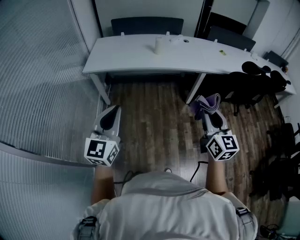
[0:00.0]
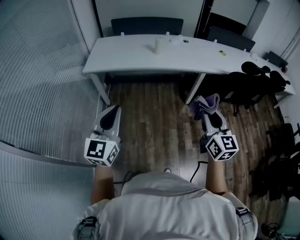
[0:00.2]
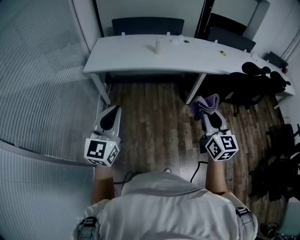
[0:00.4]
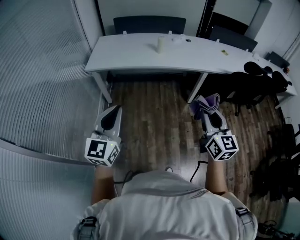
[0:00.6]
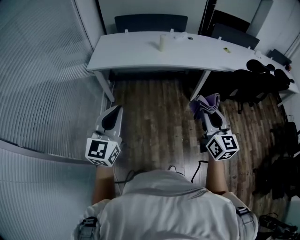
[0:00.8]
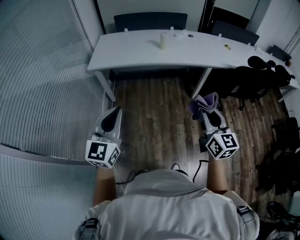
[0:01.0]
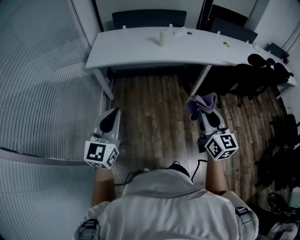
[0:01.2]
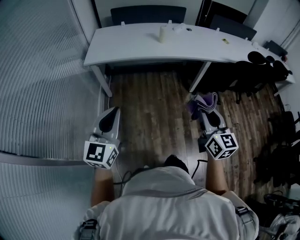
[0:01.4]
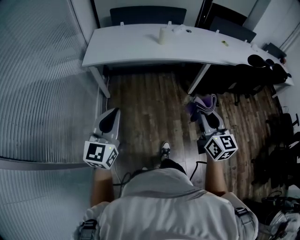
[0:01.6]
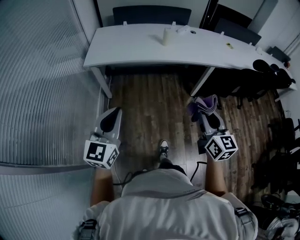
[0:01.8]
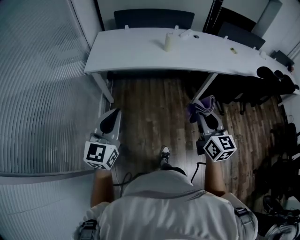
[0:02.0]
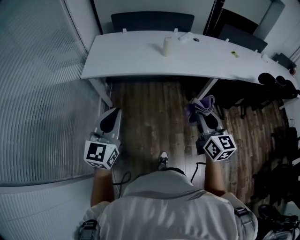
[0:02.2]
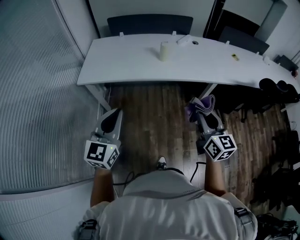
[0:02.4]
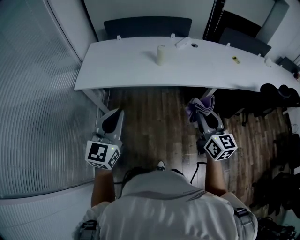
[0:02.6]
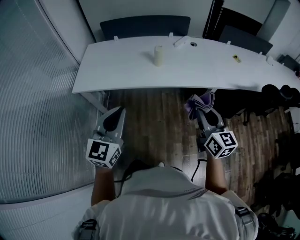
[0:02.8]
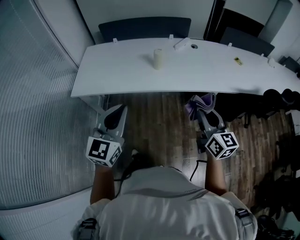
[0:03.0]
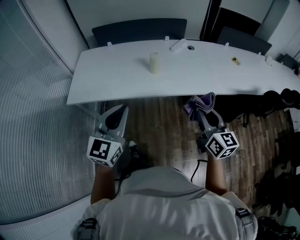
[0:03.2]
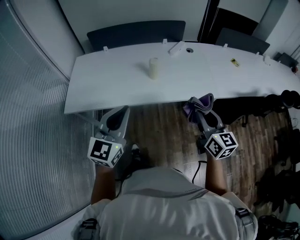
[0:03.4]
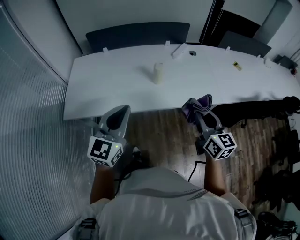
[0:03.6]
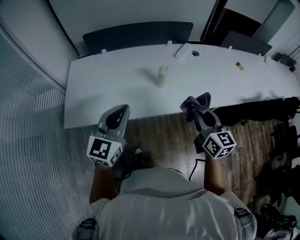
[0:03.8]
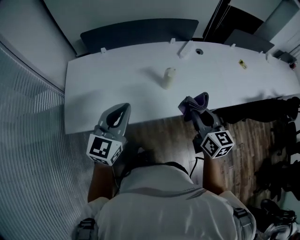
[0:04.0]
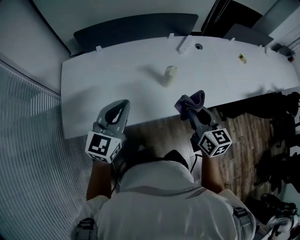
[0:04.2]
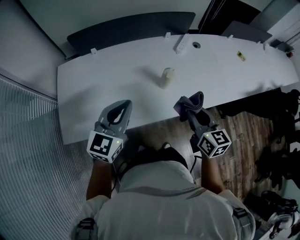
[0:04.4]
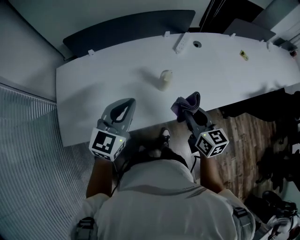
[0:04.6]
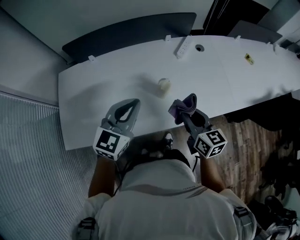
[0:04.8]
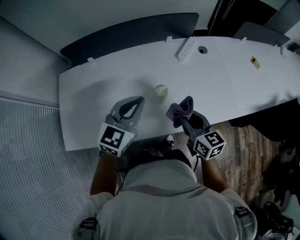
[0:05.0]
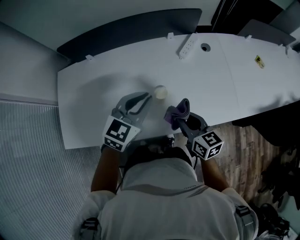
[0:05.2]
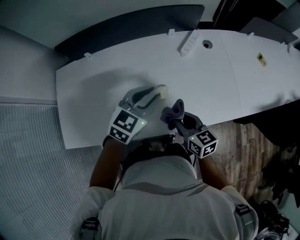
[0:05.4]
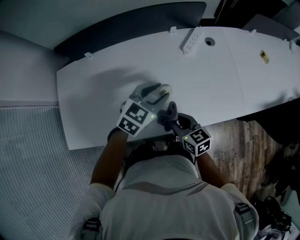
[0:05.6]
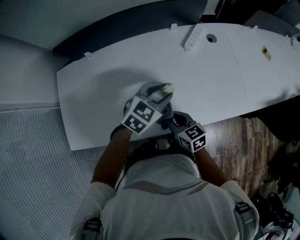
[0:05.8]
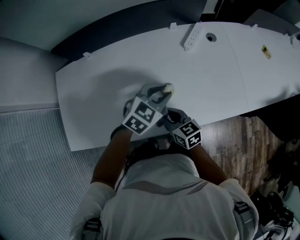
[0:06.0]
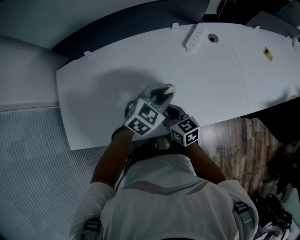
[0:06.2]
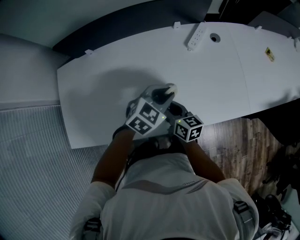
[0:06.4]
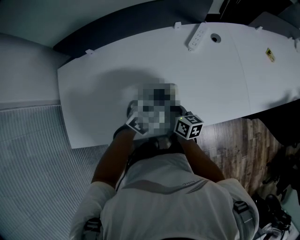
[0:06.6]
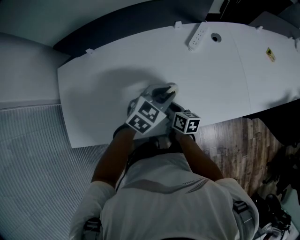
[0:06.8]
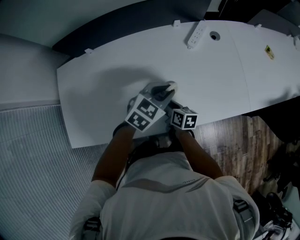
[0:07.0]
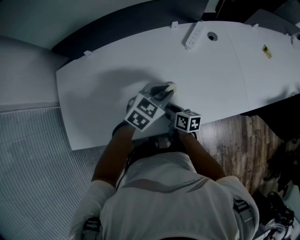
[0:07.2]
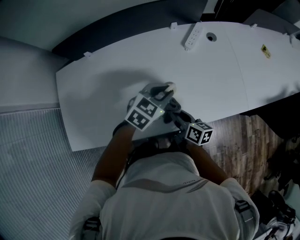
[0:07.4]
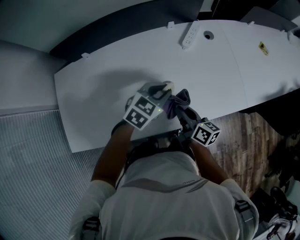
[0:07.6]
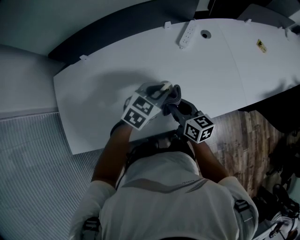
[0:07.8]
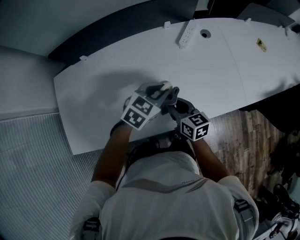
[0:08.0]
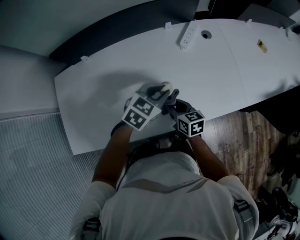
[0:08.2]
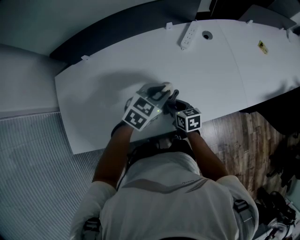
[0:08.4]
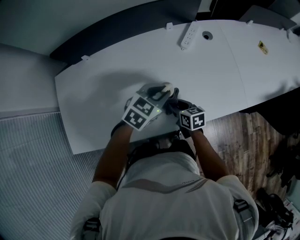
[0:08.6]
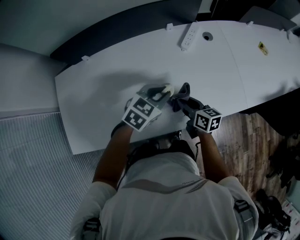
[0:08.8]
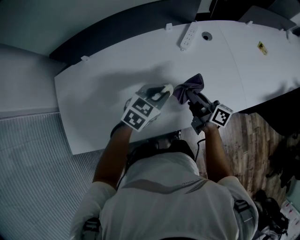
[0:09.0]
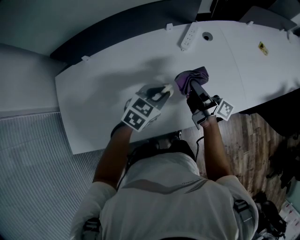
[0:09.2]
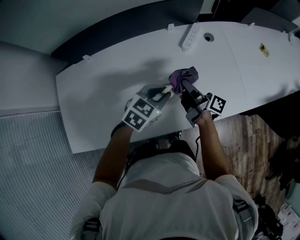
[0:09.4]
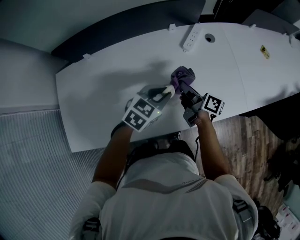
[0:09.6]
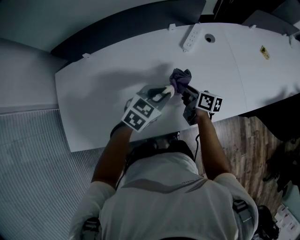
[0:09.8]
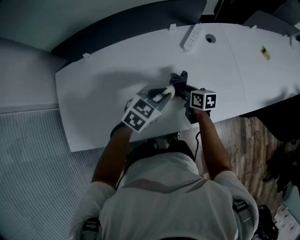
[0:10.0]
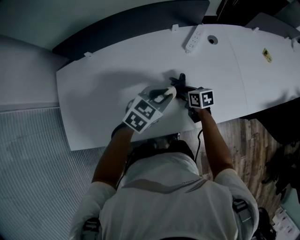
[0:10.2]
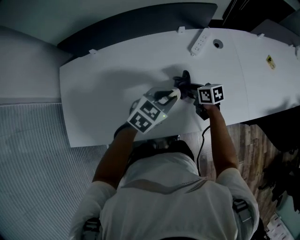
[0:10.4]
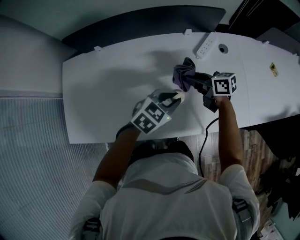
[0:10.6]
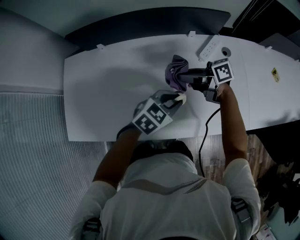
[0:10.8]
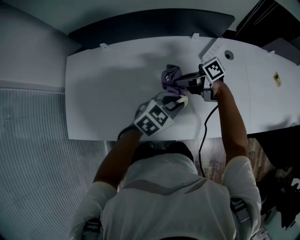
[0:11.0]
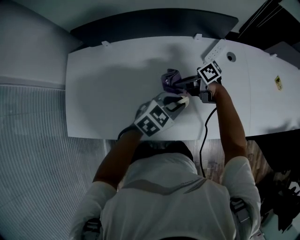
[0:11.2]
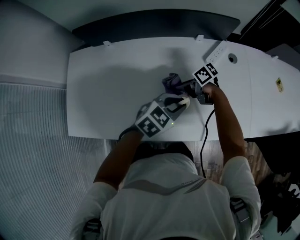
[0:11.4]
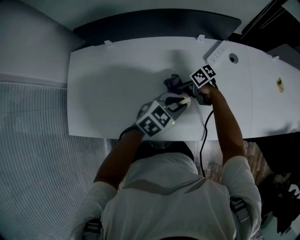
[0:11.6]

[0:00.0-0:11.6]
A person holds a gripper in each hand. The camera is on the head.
0:00.0 to 0:01.4: The grippers both shift to the left by roughly 10 cm.
0:01.4 to 0:02.8: The right gripper goes approximately 35 cm forward. Meanwhile the left gripper goes roughly 35 cm forward and to the right.
0:02.8 to 0:04.4: The left gripper shifts roughly 40 cm forward, and changes its angle by some 20 degrees. The right gripper is displaced forward and to the left by approximately 40 cm.
0:04.4 to 0:05.8: The right gripper moves downward and forward, roughly 20 cm, and turns by some 30 degrees. The left gripper is displaced forward, to the right and downward by about 30 cm, changes its angle by roughly 30 degrees, and opens up.
0:05.8 to 0:07.2: The right gripper travels downward by some 5 cm, and swivels about 30 degrees.
0:07.2 to 0:08.8: The right gripper goes up and down, some 10 cm each way, reversing 2 times.
0:08.8 to 0:10.2: The right gripper is displaced forward and downward by approximately 10 cm.
0:10.2 to 0:11.6: The right gripper travels upward and back again, about 15 cm each way, and rotates some 40 degrees.

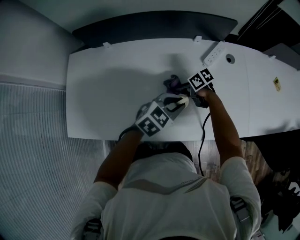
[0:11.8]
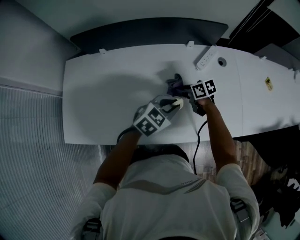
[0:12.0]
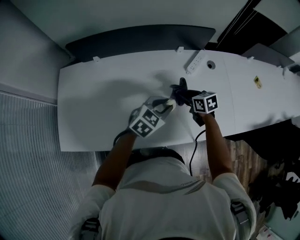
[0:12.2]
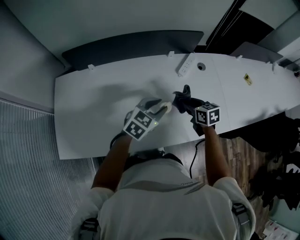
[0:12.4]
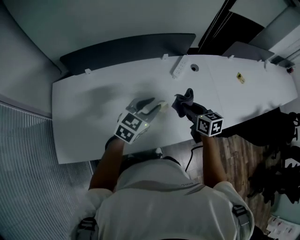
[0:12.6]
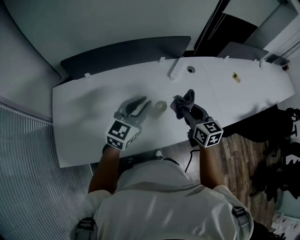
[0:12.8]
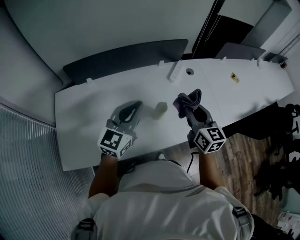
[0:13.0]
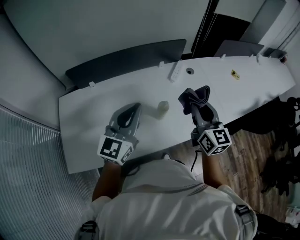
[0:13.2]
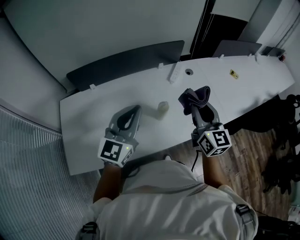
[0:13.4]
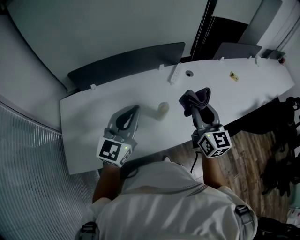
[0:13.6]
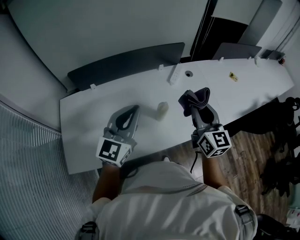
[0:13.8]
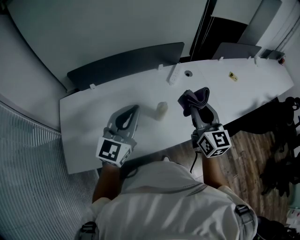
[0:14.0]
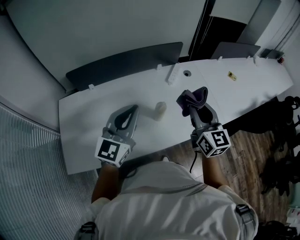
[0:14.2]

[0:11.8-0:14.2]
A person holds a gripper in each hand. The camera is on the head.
0:11.8 to 0:13.0: The left gripper moves upward, roughly 20 cm, and angles its fingers upward, by about 30 degrees, while the right gripper heads upward, covering about 30 cm, and rotates some 80 degrees.
0:13.0 to 0:14.2: The left gripper moves some 5 cm. Meanwhile the right gripper heads upward, covering about 5 cm.

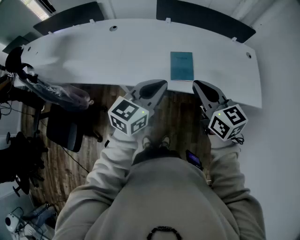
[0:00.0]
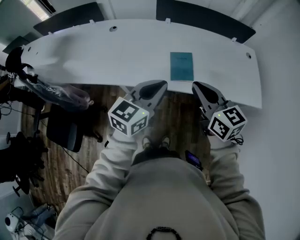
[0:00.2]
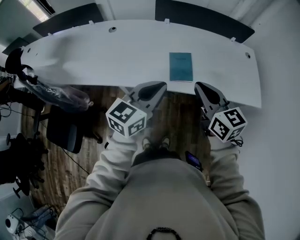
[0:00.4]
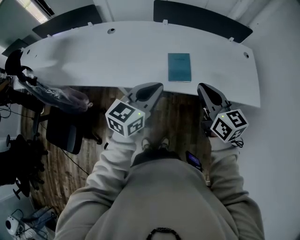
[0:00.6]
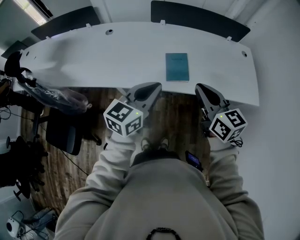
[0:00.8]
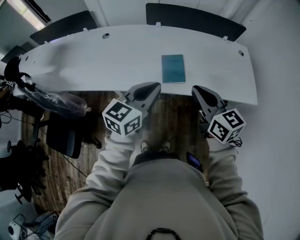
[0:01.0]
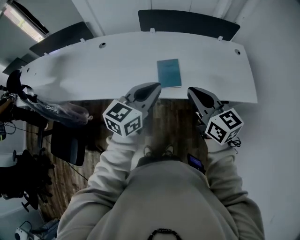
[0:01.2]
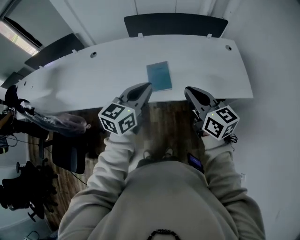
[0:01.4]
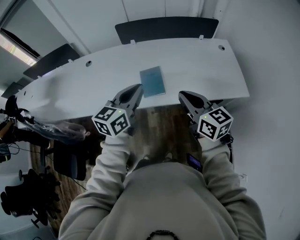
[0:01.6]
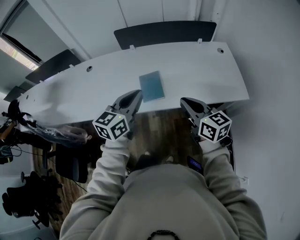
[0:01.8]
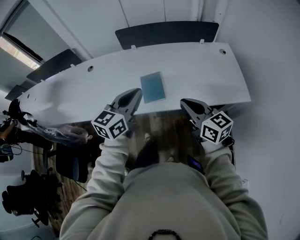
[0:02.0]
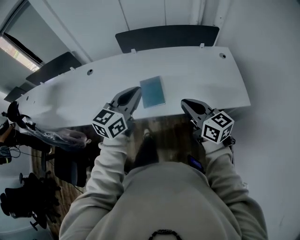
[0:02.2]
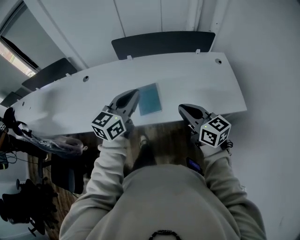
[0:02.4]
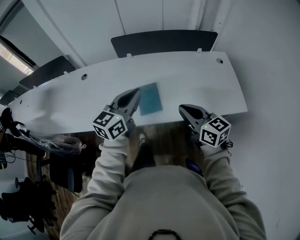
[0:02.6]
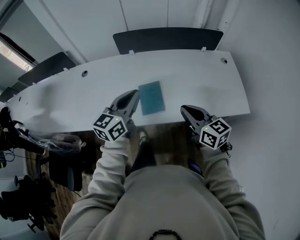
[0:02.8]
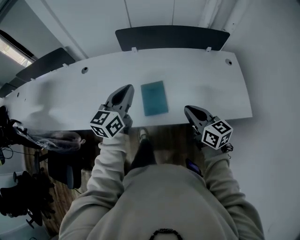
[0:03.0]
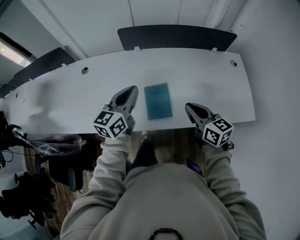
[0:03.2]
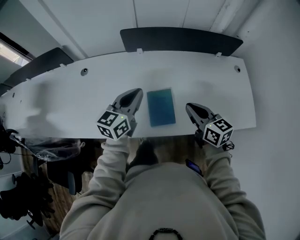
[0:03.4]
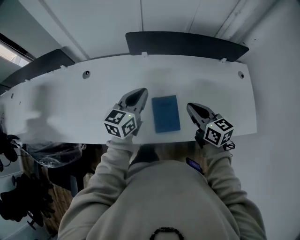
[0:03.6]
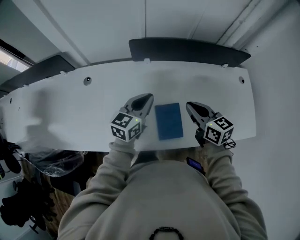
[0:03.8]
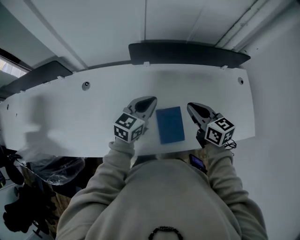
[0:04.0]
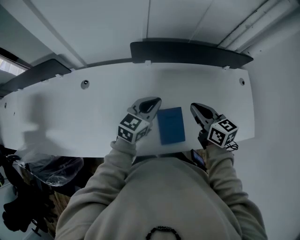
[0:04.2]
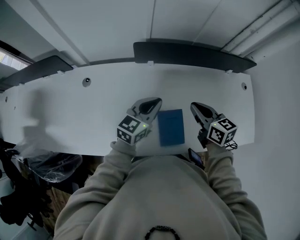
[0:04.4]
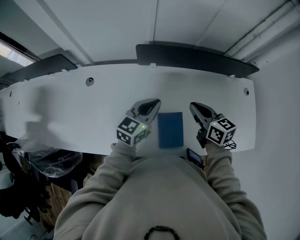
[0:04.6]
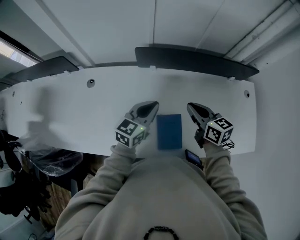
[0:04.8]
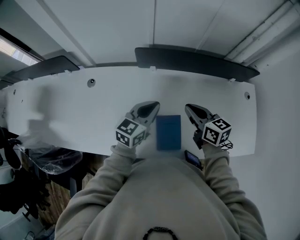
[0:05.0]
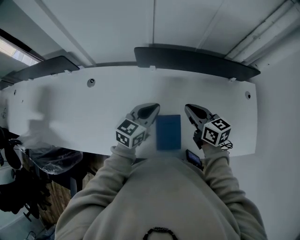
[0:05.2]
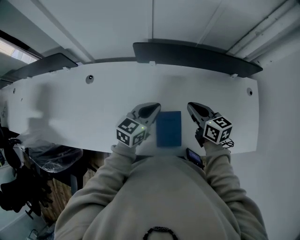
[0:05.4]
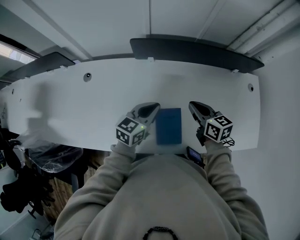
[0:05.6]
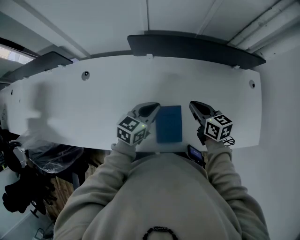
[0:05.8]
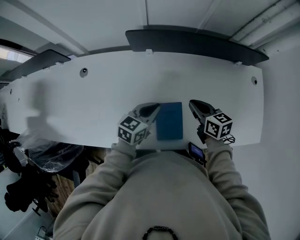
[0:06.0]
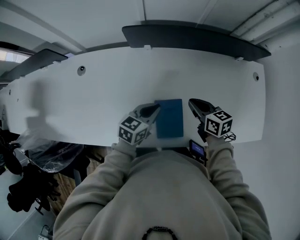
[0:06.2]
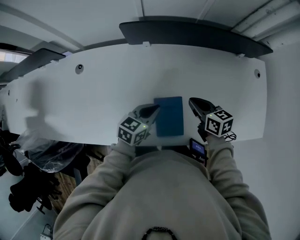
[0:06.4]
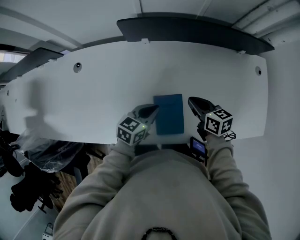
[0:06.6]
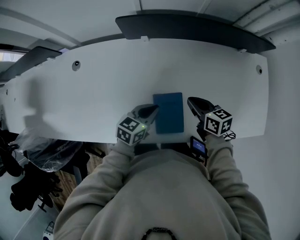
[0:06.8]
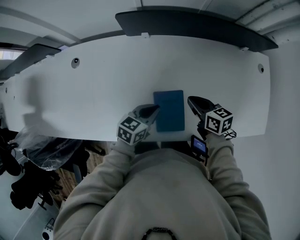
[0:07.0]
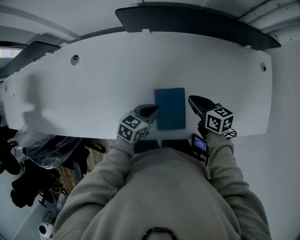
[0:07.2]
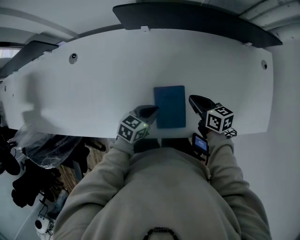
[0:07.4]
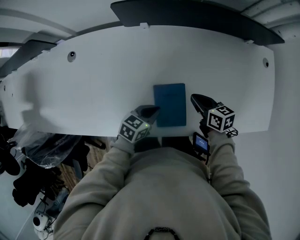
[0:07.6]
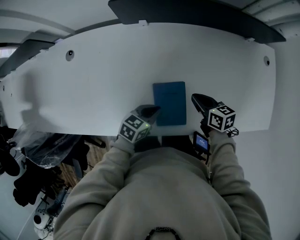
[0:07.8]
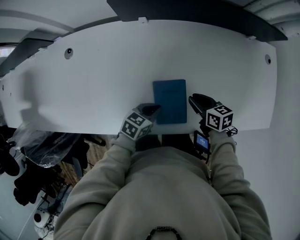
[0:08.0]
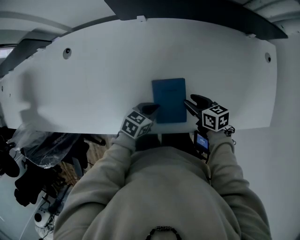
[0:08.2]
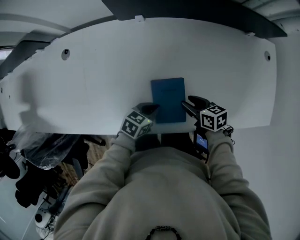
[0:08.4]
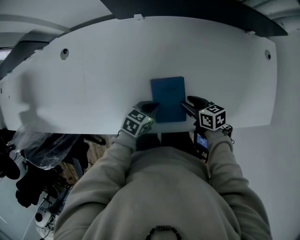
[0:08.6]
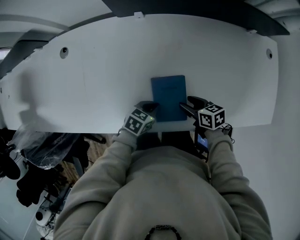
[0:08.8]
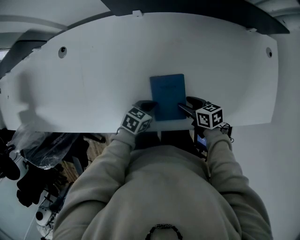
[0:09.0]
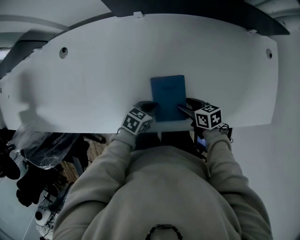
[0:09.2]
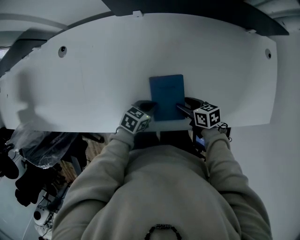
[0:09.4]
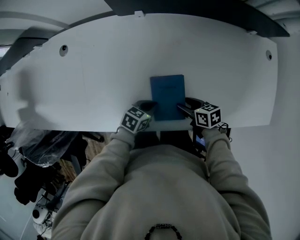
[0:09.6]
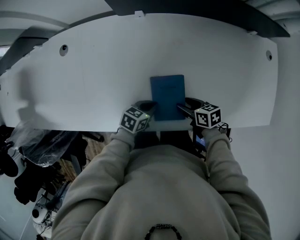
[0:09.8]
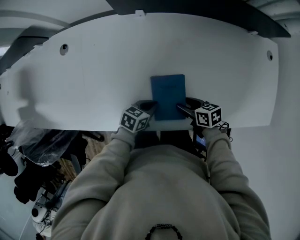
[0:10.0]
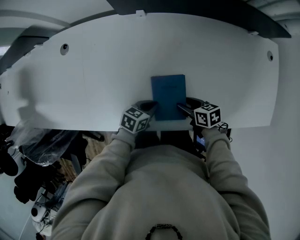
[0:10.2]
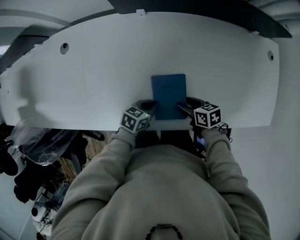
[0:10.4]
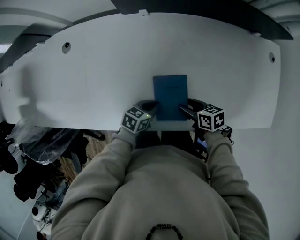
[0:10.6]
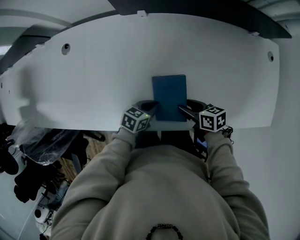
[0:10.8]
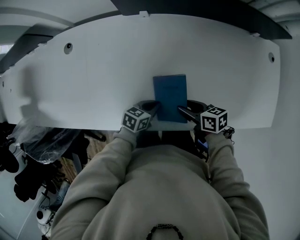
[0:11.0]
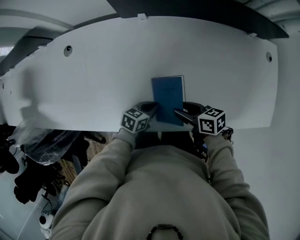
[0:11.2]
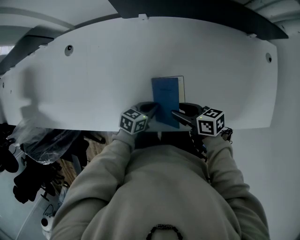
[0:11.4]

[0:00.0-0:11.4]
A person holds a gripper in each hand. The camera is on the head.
0:00.0 to 0:01.4: Both grippers move to the right, approximately 10 cm.
0:01.4 to 0:02.8: The right gripper shifts roughly 10 cm forward and downward; the left gripper goes some 10 cm forward.
0:02.8 to 0:04.2: The left gripper heads forward and downward, covering some 25 cm. Meanwhile the right gripper goes some 25 cm forward.
0:04.2 to 0:05.6: The right gripper moves downward, approximately 5 cm.
0:05.6 to 0:07.2: The left gripper heads downward and backward, covering some 15 cm, and rotates roughly 20 degrees, while the right gripper shifts approximately 10 cm downward.
0:07.2 to 0:08.6: Both grippers move downward, some 10 cm. The right gripper opens its fingers.
0:08.6 to 0:10.0: There are only small adjustments of the grippers.
0:10.0 to 0:11.4: The right gripper is displaced upward by about 10 cm.
